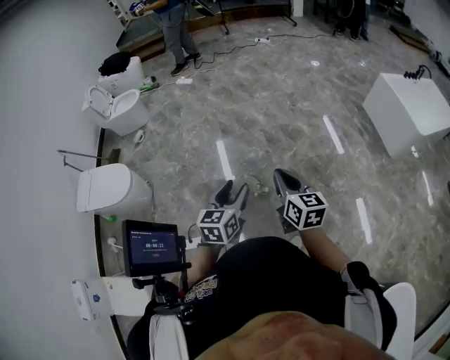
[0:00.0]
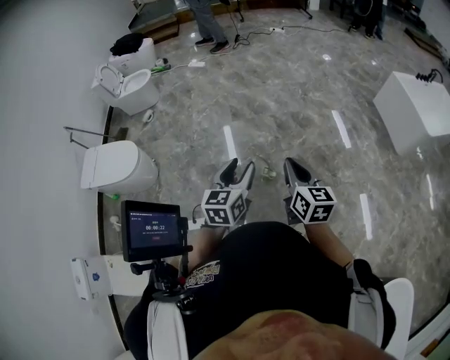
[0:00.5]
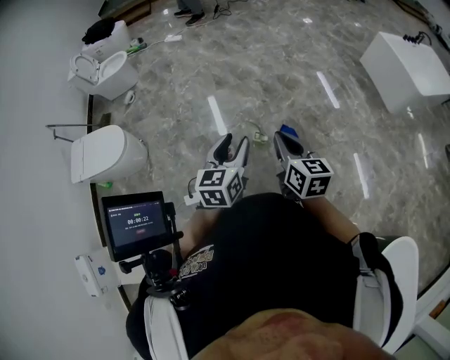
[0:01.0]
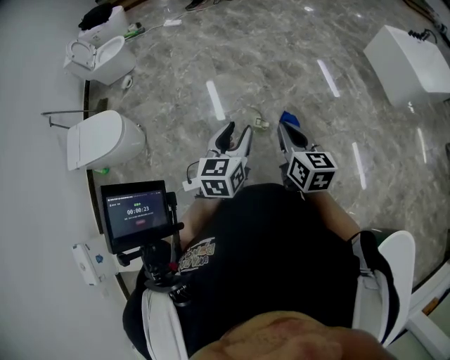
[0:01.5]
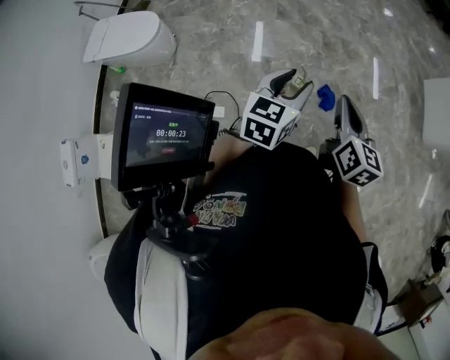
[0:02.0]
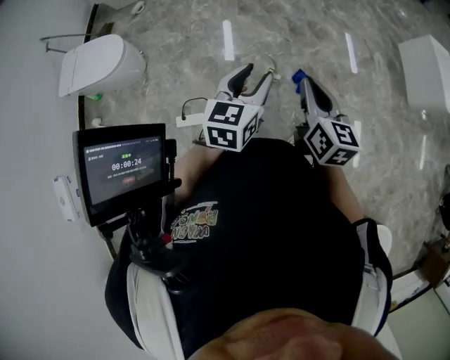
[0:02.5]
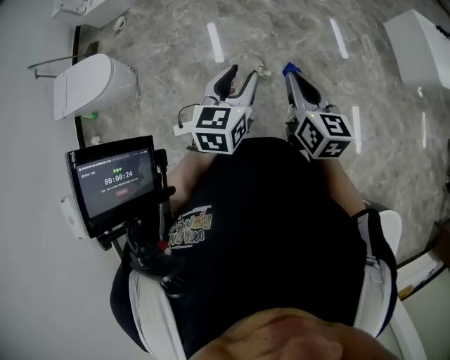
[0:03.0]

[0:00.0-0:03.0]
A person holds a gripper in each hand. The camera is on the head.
0:00.0 to 0:03.0: The grippers stay close to where they were, moving slightly.

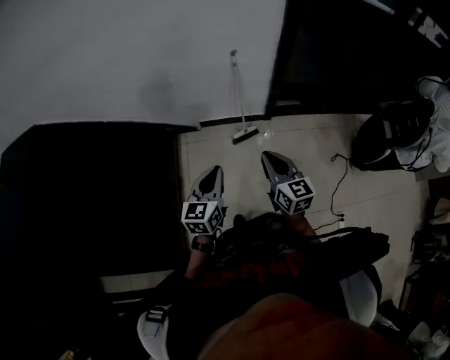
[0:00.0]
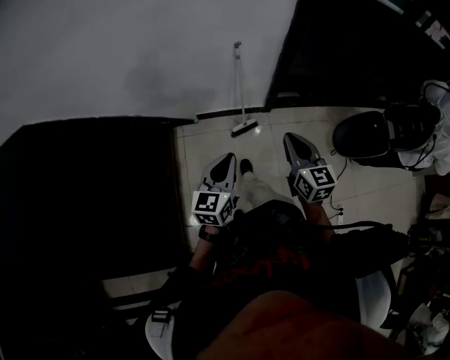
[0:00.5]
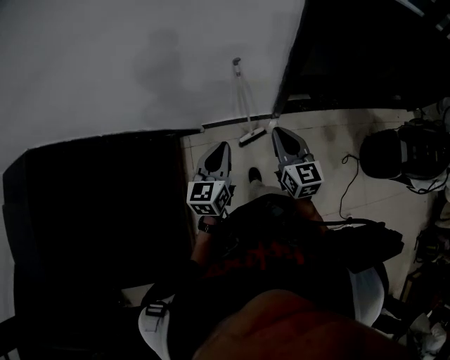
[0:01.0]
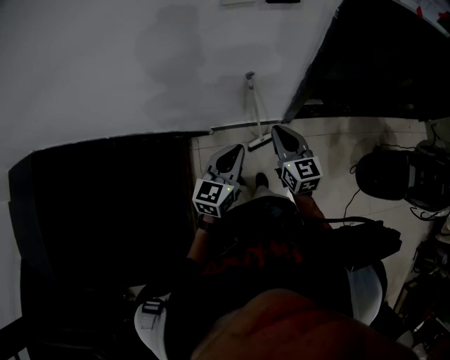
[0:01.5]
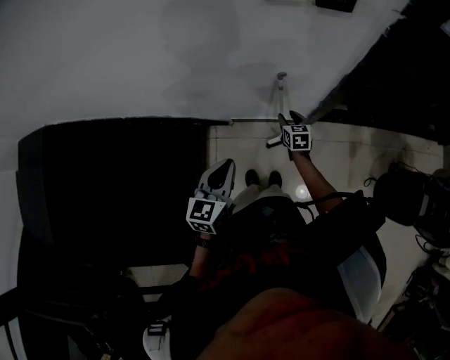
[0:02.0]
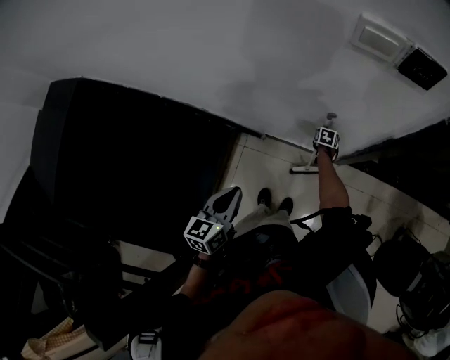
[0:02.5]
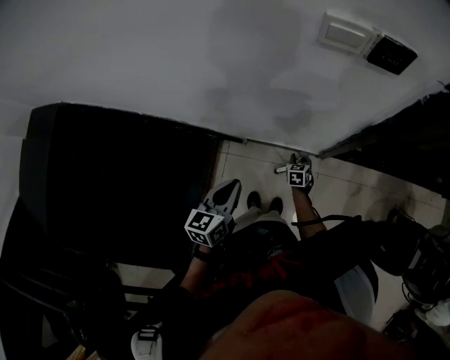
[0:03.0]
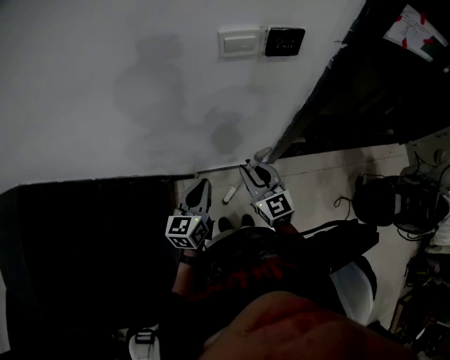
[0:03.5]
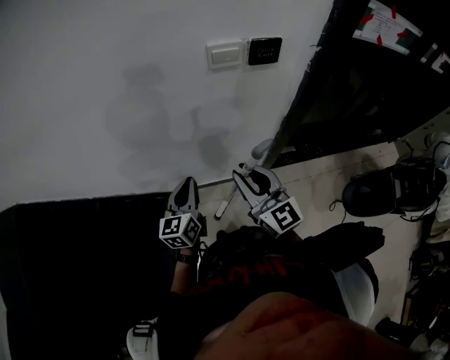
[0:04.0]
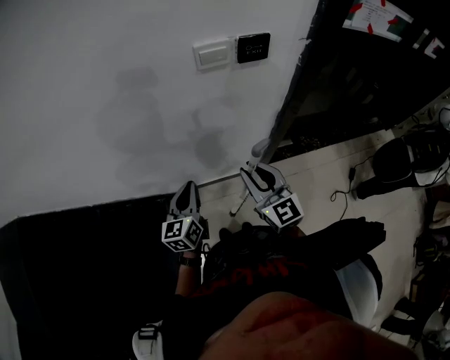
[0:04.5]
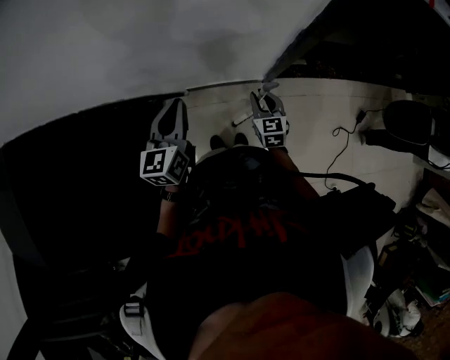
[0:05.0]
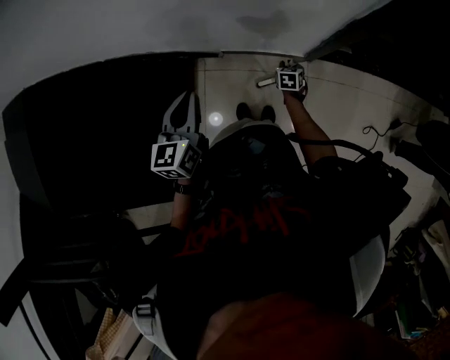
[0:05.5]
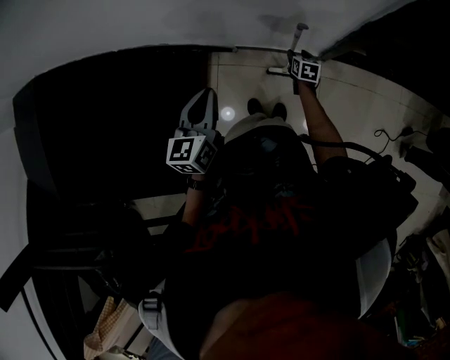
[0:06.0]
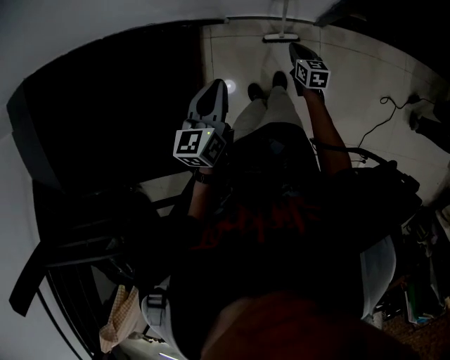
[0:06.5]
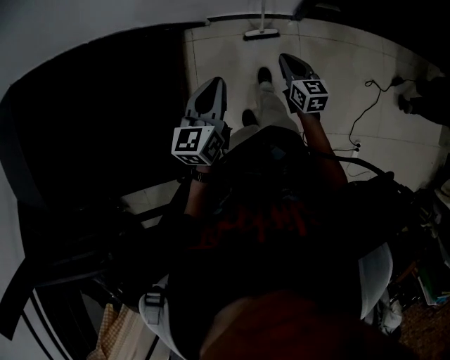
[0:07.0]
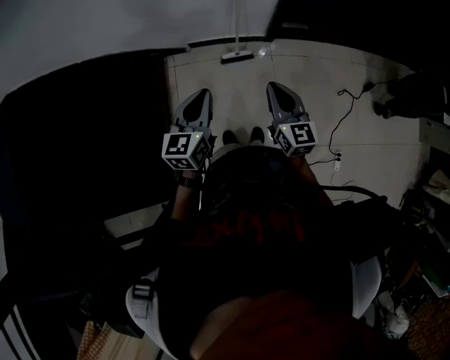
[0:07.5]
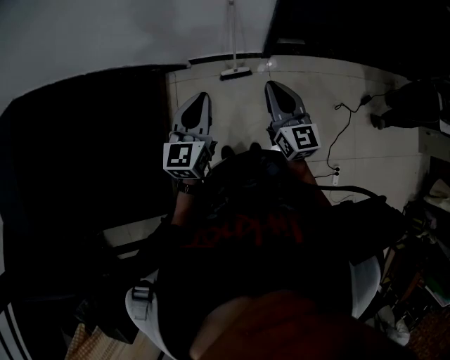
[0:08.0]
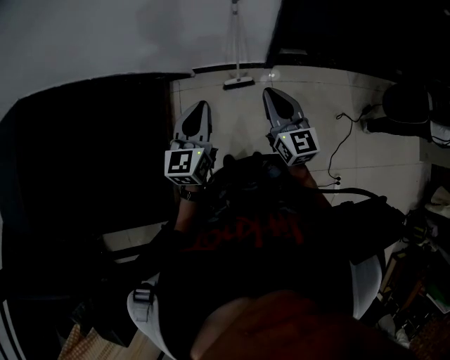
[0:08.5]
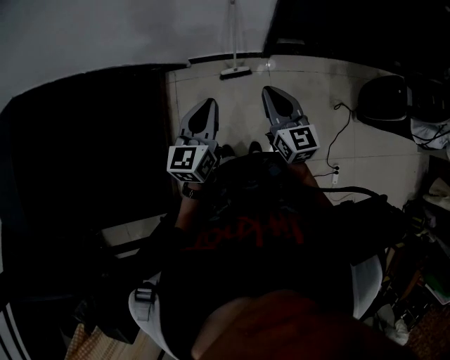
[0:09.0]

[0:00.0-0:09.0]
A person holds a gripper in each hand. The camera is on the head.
0:00.0 to 0:02.0: The right gripper moves forward and downward, about 60 cm, rotates approximately 30 degrees, and opens. The left gripper heads forward, covering approximately 40 cm.
0:02.0 to 0:04.5: The right gripper swings up and down, roughly 50 cm each way, with 2 reversals, and angles its fingers upward, by some 30 degrees; the left gripper shifts roughly 10 cm forward.
0:04.5 to 0:07.0: The left gripper goes approximately 25 cm backward; the right gripper is displaced downward and backward by about 35 cm, turns by about 30 degrees, and opens, then closes again.
0:07.0 to 0:09.0: The right gripper moves upward and backward, about 25 cm, and swivels about 20 degrees. Meanwhile the left gripper moves backward, upward and to the right, approximately 15 cm.

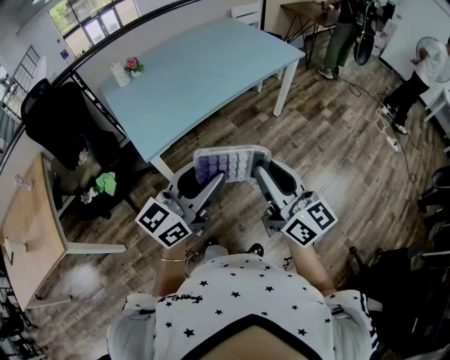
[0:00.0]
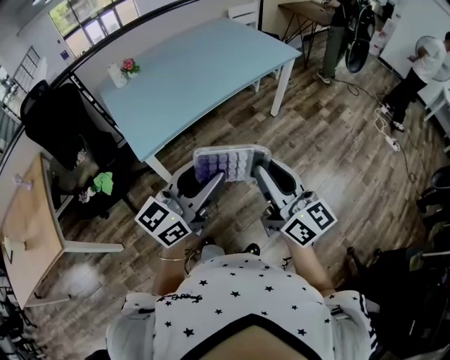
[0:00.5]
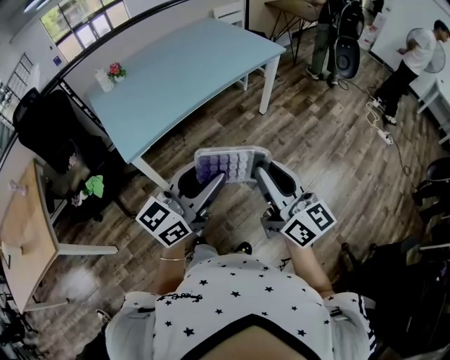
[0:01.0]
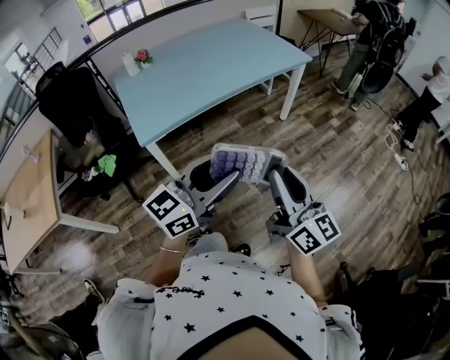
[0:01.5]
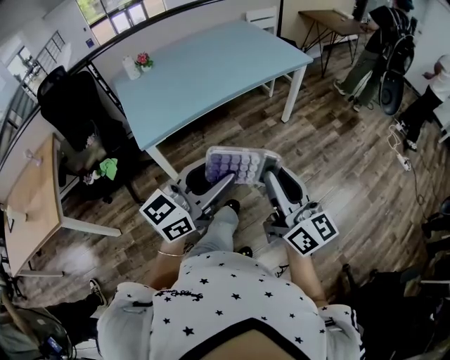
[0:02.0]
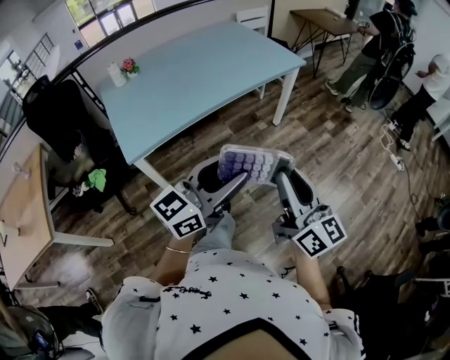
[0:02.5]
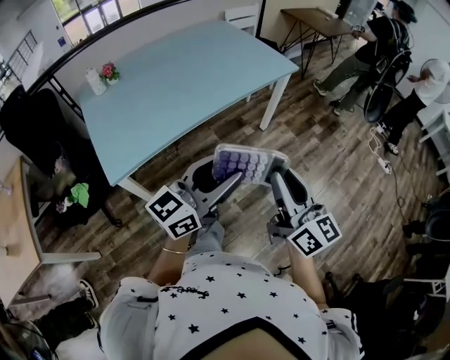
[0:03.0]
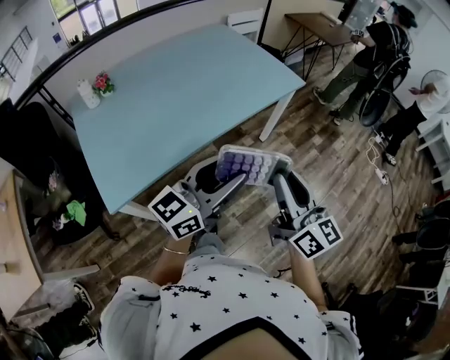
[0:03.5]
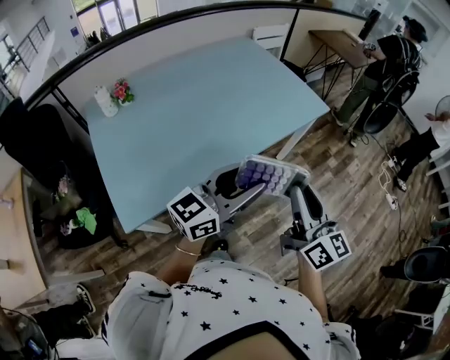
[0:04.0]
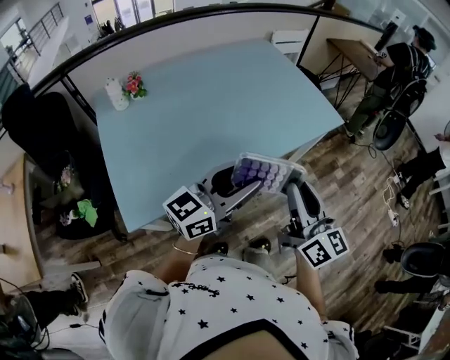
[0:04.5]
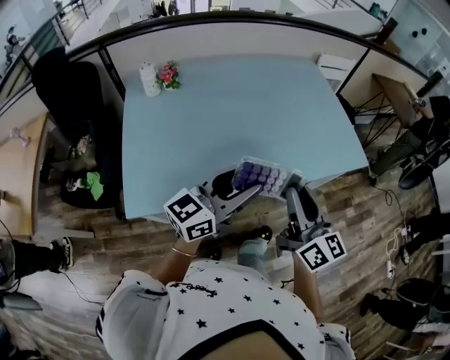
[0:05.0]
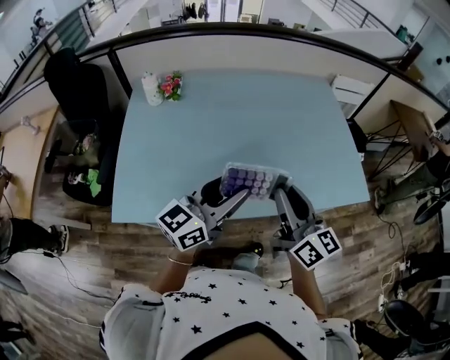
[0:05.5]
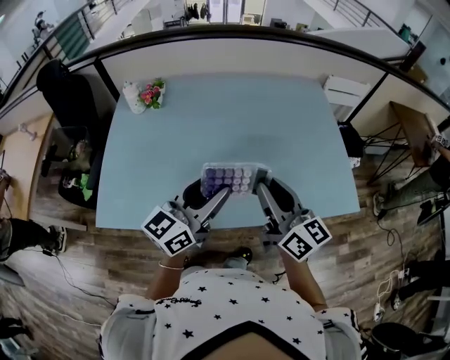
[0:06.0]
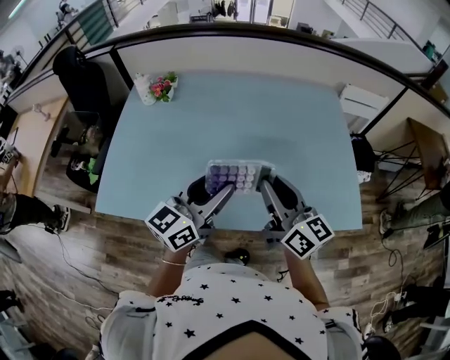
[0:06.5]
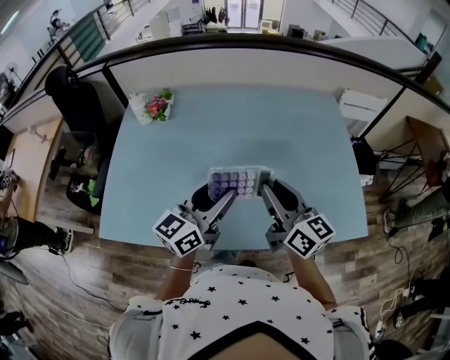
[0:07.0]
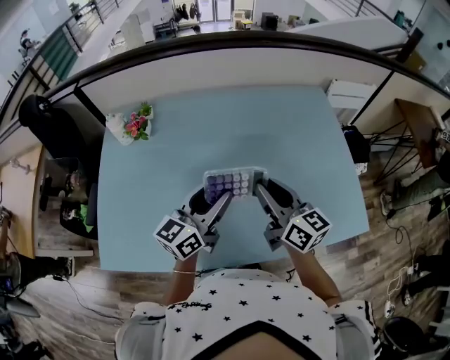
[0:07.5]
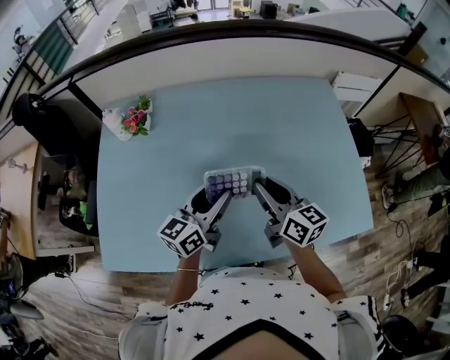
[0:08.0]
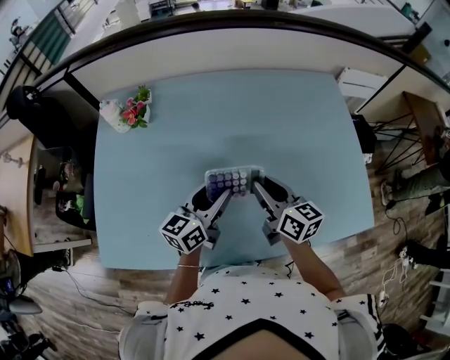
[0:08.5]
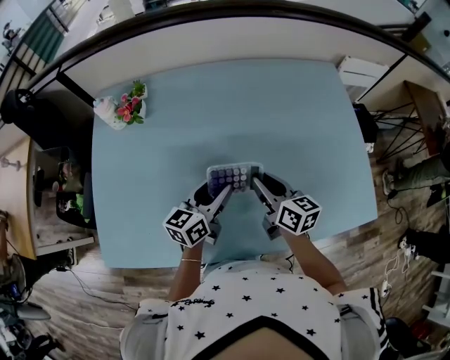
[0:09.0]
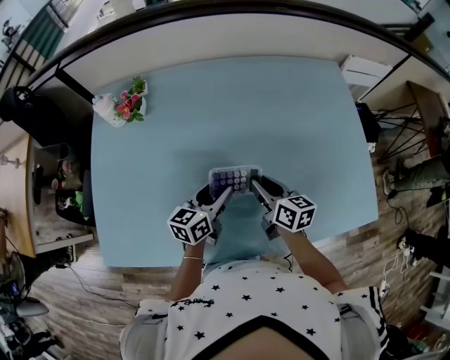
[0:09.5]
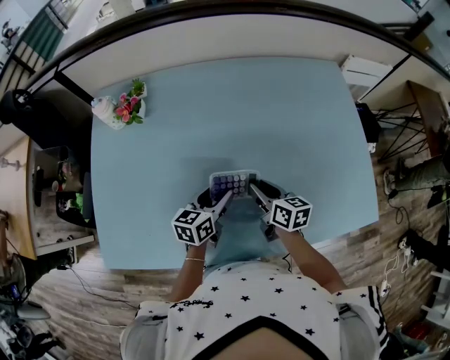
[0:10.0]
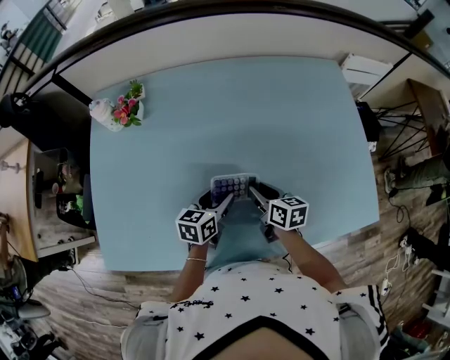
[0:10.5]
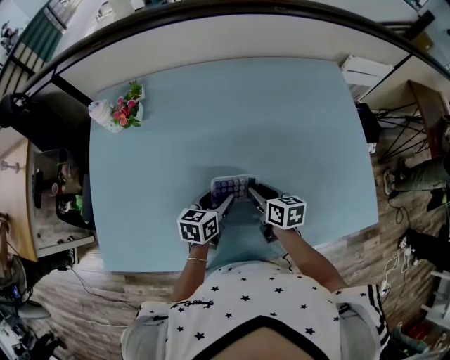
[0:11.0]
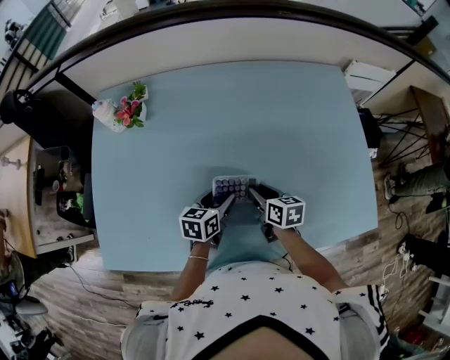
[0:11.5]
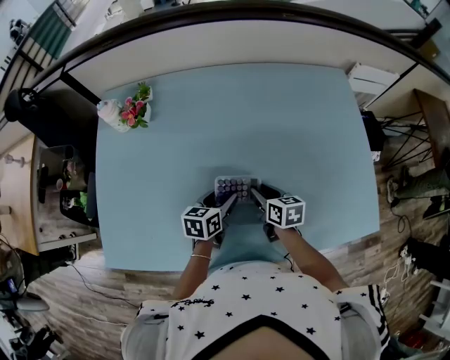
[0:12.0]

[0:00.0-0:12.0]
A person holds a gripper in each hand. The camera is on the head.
0:00.0 to 0:02.0: Both grippers travel together to the right, some 10 cm.
0:02.0 to 0:04.0: Both grippers travel together forward, approximately 35 cm.
0:04.0 to 0:06.0: The right gripper changes place by roughly 30 cm, and turns by some 40 degrees, while the left gripper moves roughly 25 cm, and turns by approximately 40 degrees.
0:06.0 to 0:08.0: Both grippers move forward and downward, roughly 20 cm.
0:08.0 to 0:10.0: The grippers both shift downward by roughly 15 cm. The right gripper rotates approximately 20 degrees. Meanwhile the left gripper turns by roughly 20 degrees.
0:10.0 to 0:12.0: The grippers move only a little.

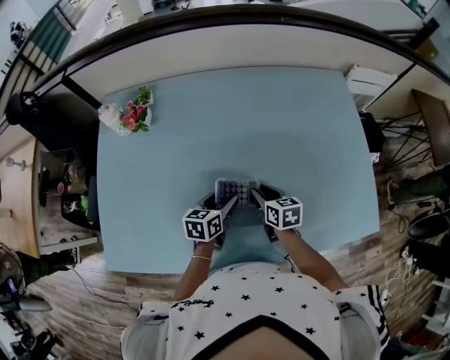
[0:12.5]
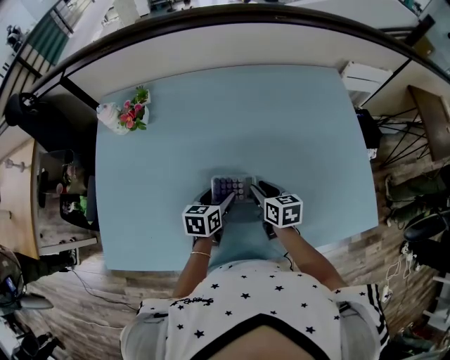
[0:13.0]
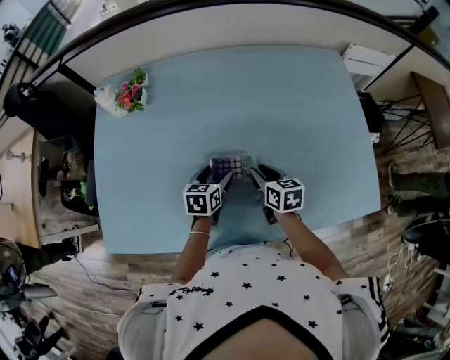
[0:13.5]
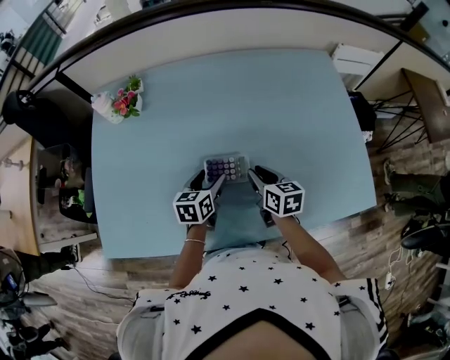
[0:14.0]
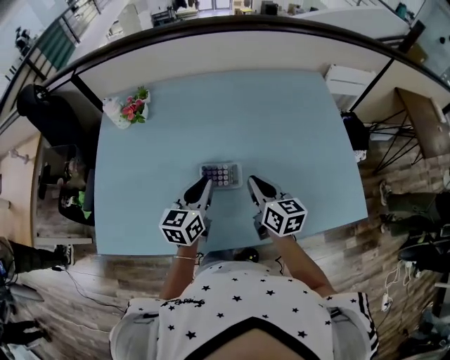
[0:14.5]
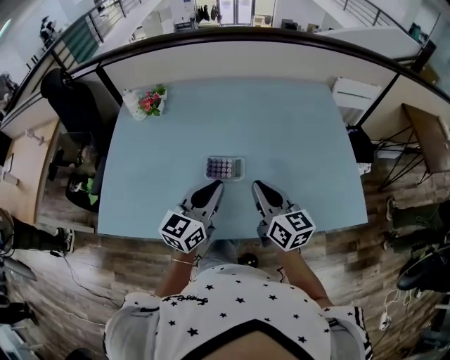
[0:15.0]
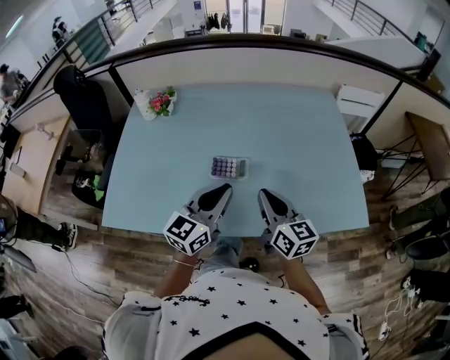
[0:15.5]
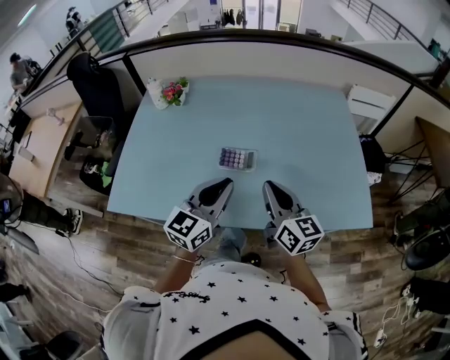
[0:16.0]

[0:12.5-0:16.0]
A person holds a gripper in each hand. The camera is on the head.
0:12.5 to 0:14.5: The left gripper travels upward by about 15 cm, swivels approximately 30 degrees, and closes up; the right gripper heads upward and backward, covering roughly 15 cm, changes its angle by roughly 20 degrees, and closes.
0:14.5 to 0:16.0: Both grippers travel together backward and upward, about 15 cm. The left gripper changes its angle by approximately 20 degrees.
